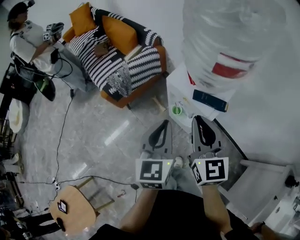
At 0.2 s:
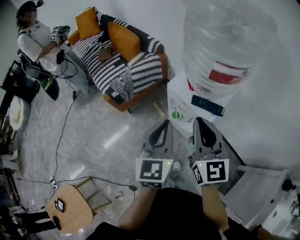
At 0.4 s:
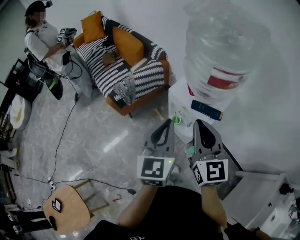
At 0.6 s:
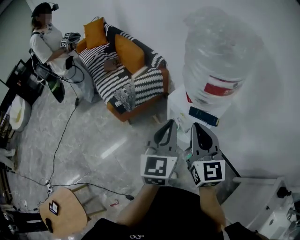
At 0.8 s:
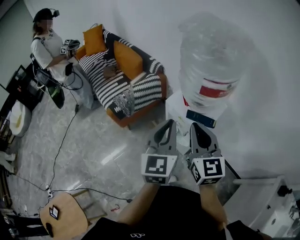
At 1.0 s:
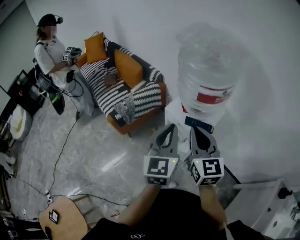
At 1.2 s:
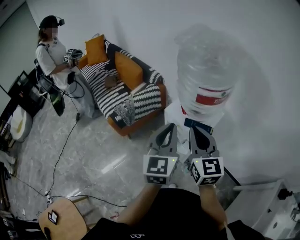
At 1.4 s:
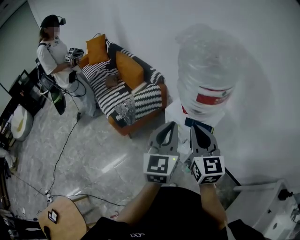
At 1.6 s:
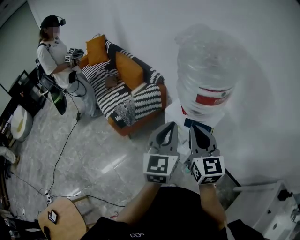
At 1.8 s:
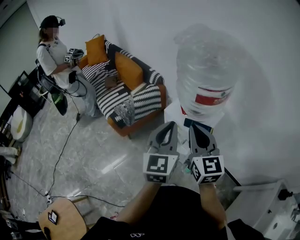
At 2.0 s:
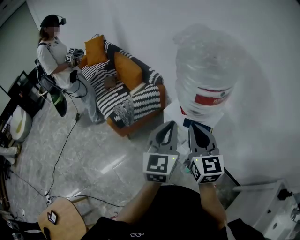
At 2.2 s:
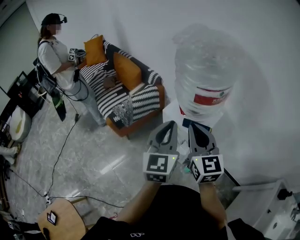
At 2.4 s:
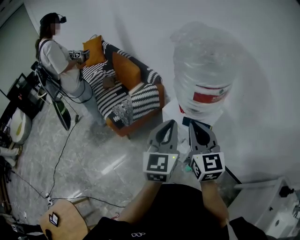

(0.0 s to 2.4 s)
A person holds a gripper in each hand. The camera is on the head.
0.0 s - 1.2 s: The two grippers go roughly 10 cm upward.
1.2 s - 2.4 s: There are only small adjustments of the grippers.

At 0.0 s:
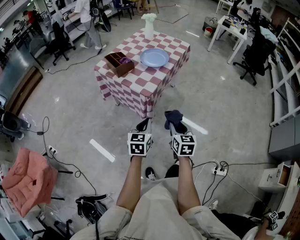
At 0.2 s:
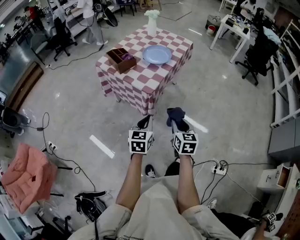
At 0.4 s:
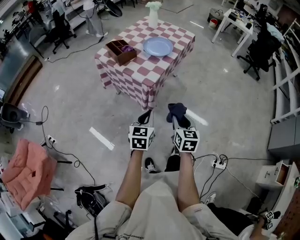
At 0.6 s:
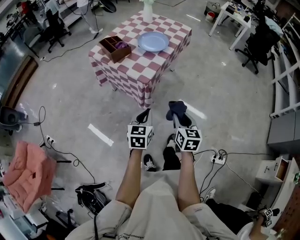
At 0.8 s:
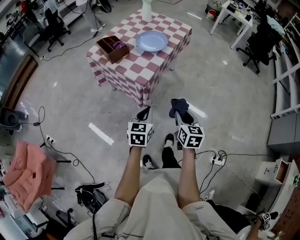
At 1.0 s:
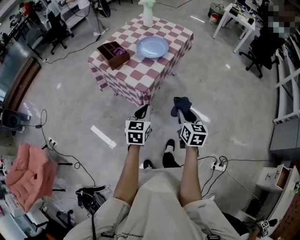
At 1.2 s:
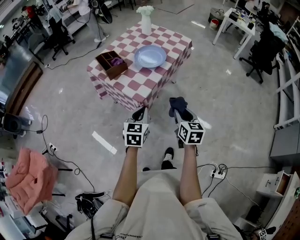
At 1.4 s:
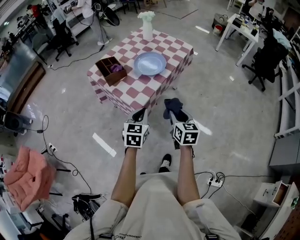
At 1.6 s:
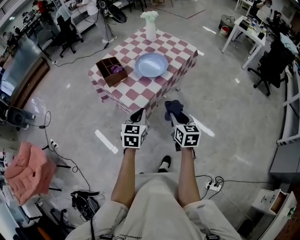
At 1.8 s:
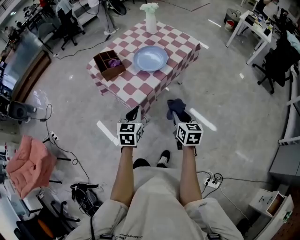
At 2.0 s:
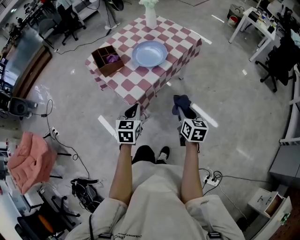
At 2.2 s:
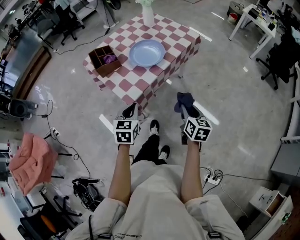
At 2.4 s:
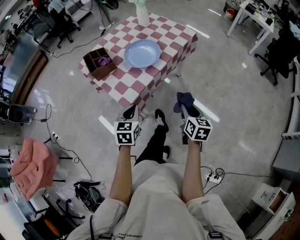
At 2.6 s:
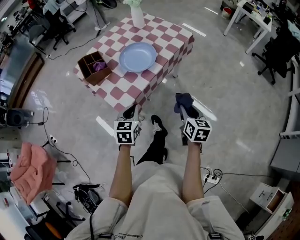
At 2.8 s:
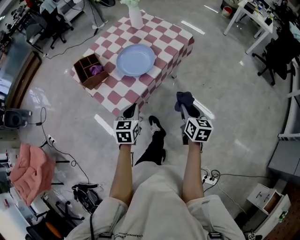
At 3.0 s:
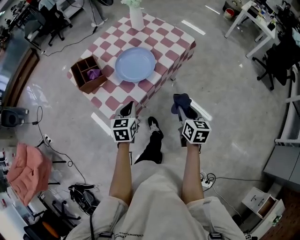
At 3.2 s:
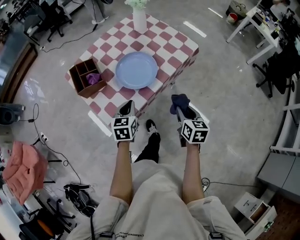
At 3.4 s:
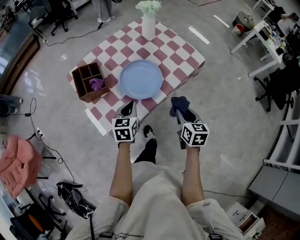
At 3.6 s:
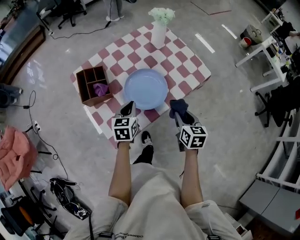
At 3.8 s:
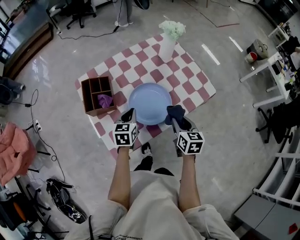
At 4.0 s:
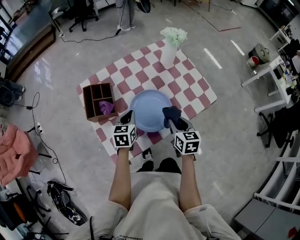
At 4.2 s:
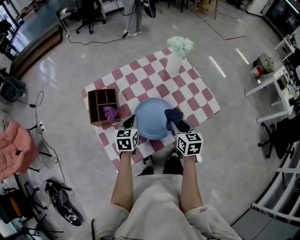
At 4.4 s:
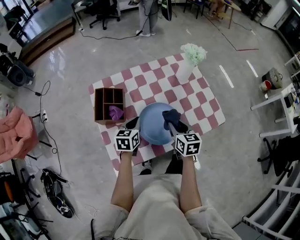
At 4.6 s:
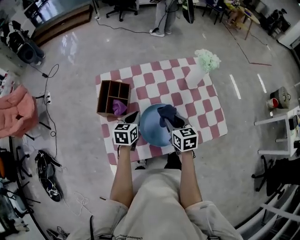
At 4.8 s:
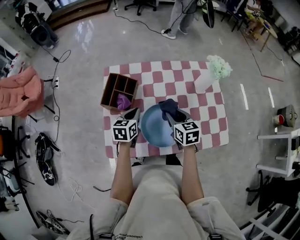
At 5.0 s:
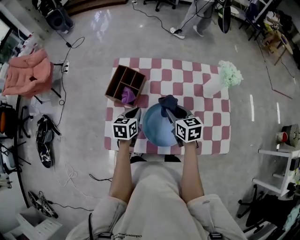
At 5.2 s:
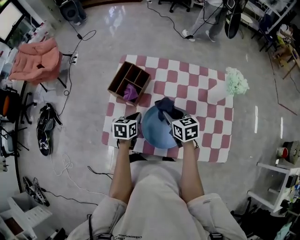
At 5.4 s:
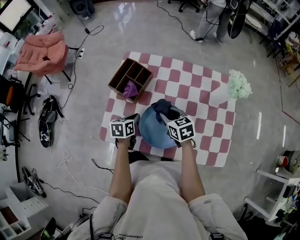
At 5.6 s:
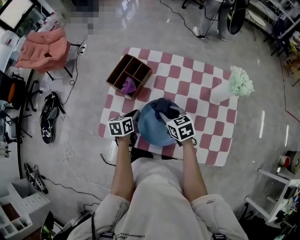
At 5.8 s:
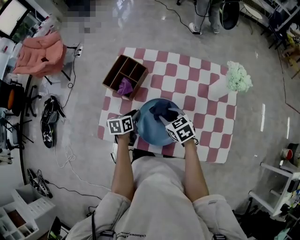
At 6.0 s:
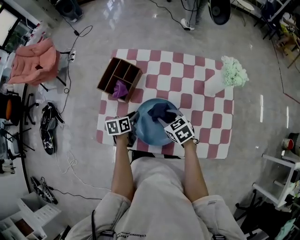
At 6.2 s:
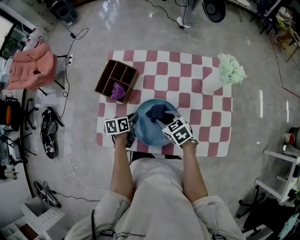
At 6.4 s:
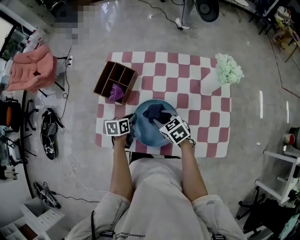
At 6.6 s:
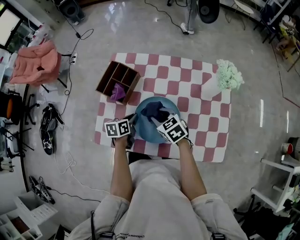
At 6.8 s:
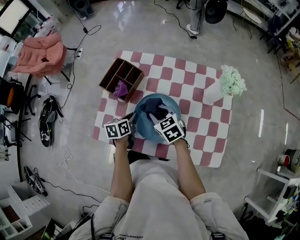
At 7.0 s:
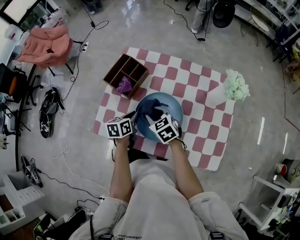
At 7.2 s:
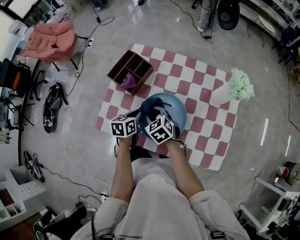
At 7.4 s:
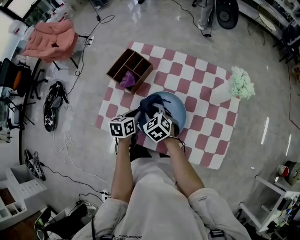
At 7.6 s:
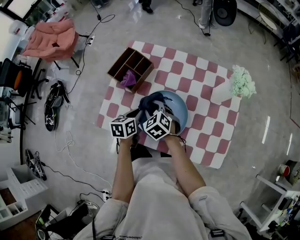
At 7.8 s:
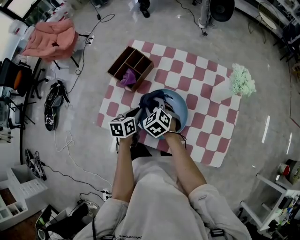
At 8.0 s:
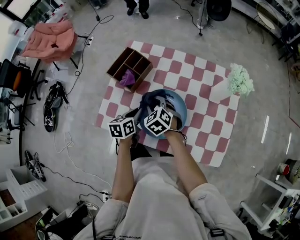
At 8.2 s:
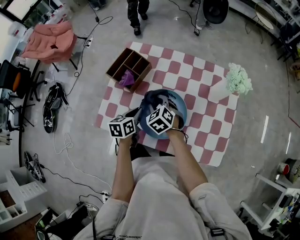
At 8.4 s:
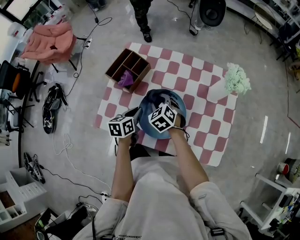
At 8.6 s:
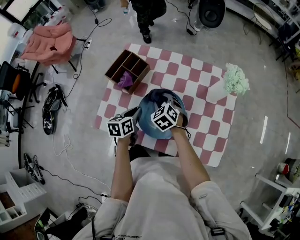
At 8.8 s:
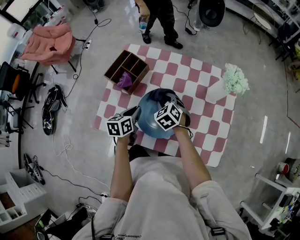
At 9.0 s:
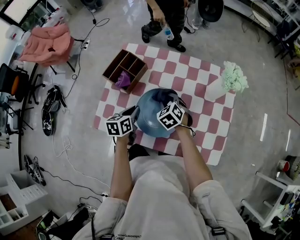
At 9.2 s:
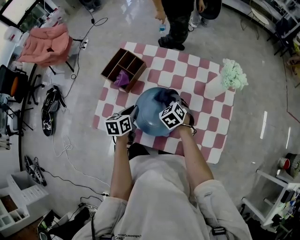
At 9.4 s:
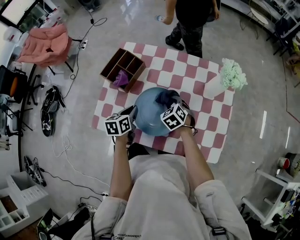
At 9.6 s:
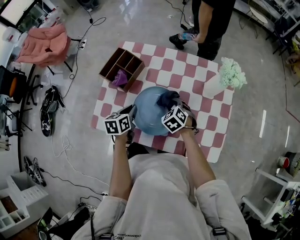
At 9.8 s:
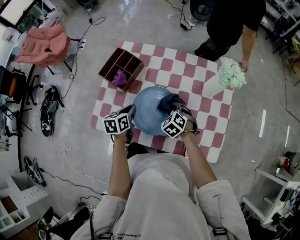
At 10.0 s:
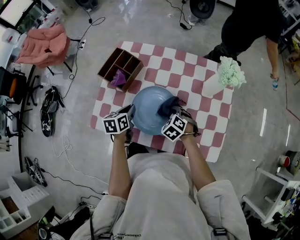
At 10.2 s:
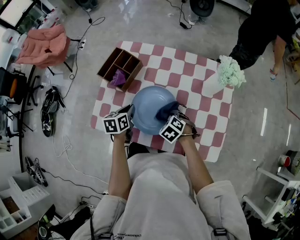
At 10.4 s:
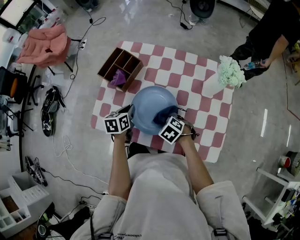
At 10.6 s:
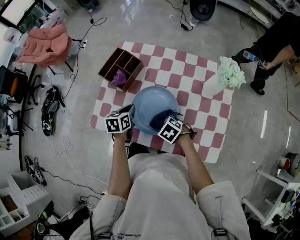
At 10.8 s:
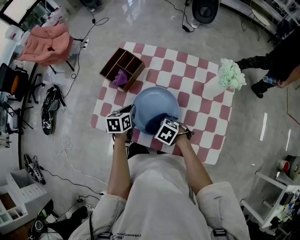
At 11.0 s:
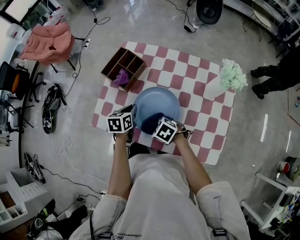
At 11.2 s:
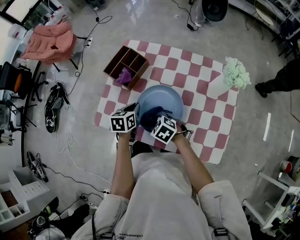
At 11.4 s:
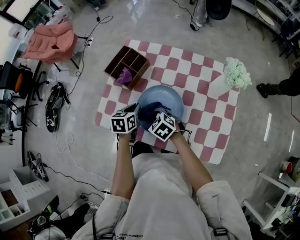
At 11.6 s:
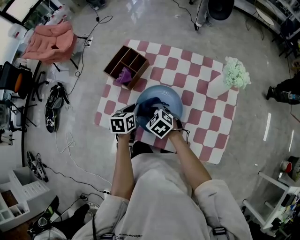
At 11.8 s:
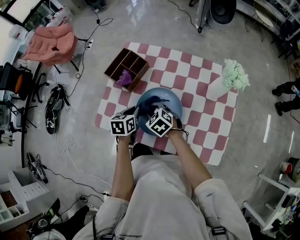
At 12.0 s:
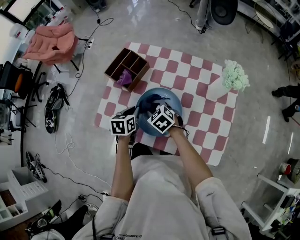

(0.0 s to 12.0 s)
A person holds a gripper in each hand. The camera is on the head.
0.0 s - 1.6 s: Both grippers move forward, about 20 cm.
1.6 s - 3.0 s: The left gripper moves forward and downward, some 20 cm. The right gripper heads forward, to the right and downward, covering approximately 20 cm.
3.0 s - 4.4 s: Both grippers travel together forward, about 30 cm. The left gripper rotates approximately 30 degrees. The right gripper rotates some 40 degrees.
4.4 s - 6.0 s: The left gripper is displaced downward by about 10 cm, and turns by some 40 degrees. The right gripper moves about 10 cm, and turns by roughly 60 degrees.
6.0 s - 7.6 s: The left gripper heads upward, covering approximately 5 cm, while the right gripper heads to the left, covering approximately 5 cm, and changes its angle by roughly 20 degrees.
7.6 s - 9.0 s: The right gripper travels to the right by approximately 10 cm.
9.0 s - 10.4 s: The right gripper heads backward, covering some 10 cm, and swivels approximately 20 degrees.
10.4 s - 12.0 s: The right gripper heads forward and to the left, covering approximately 10 cm, and rotates some 20 degrees.

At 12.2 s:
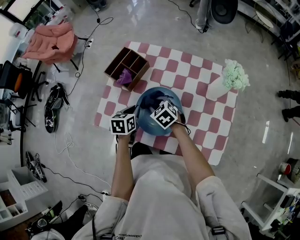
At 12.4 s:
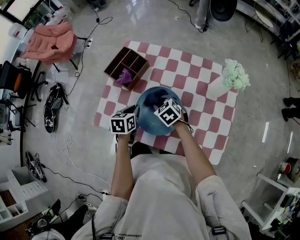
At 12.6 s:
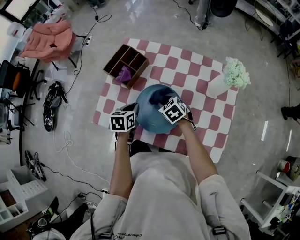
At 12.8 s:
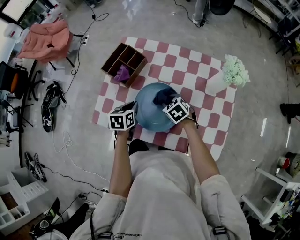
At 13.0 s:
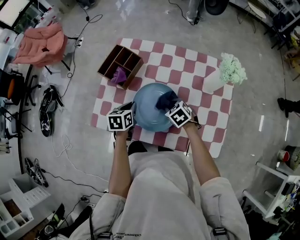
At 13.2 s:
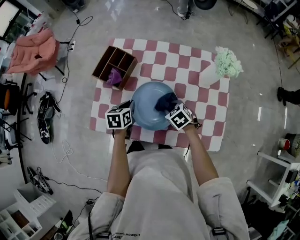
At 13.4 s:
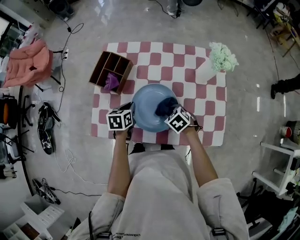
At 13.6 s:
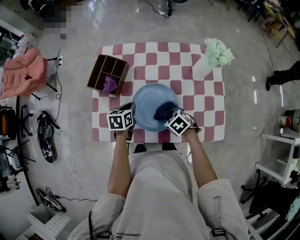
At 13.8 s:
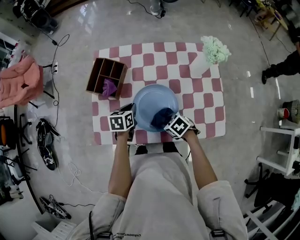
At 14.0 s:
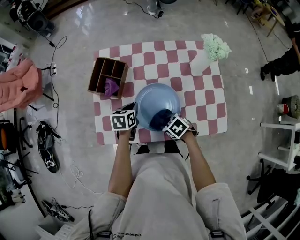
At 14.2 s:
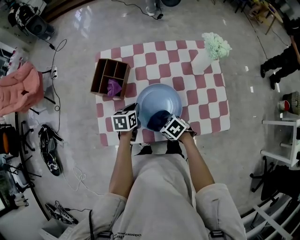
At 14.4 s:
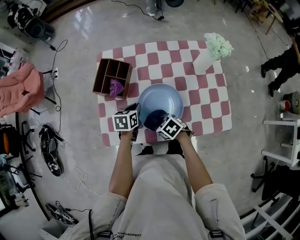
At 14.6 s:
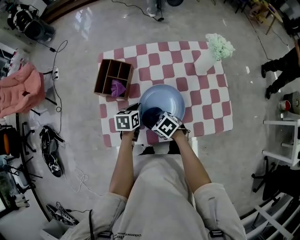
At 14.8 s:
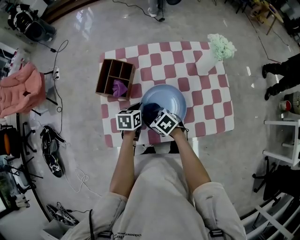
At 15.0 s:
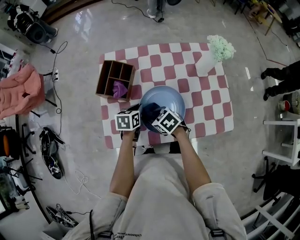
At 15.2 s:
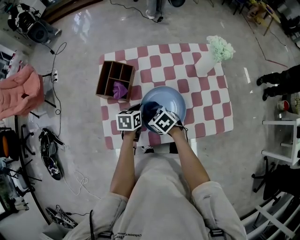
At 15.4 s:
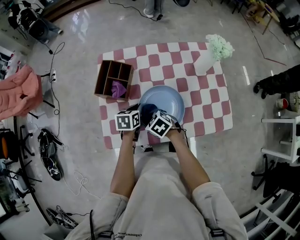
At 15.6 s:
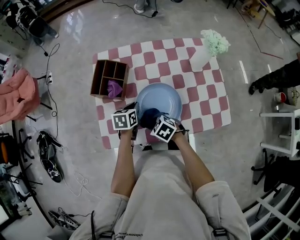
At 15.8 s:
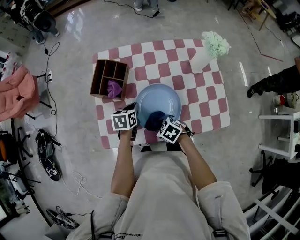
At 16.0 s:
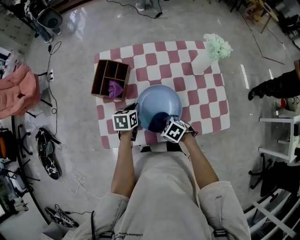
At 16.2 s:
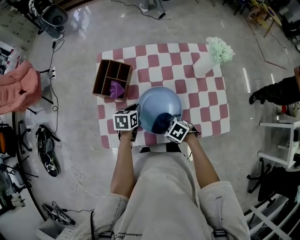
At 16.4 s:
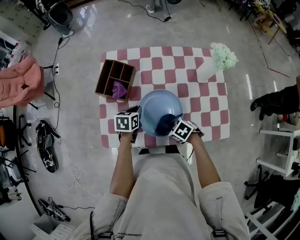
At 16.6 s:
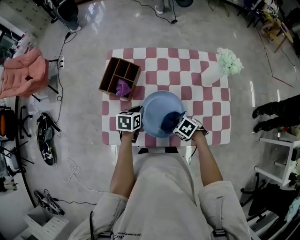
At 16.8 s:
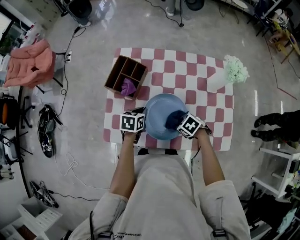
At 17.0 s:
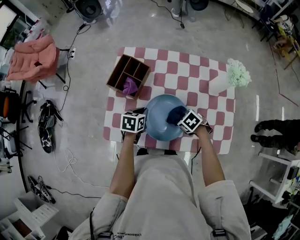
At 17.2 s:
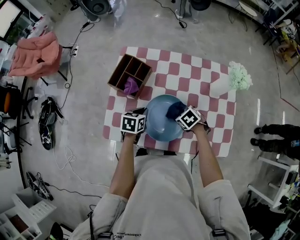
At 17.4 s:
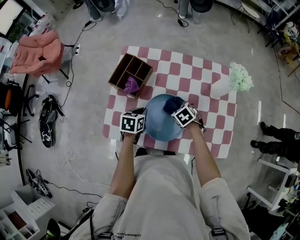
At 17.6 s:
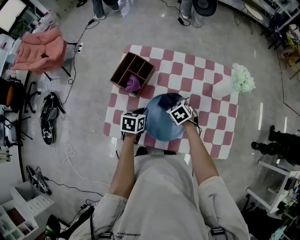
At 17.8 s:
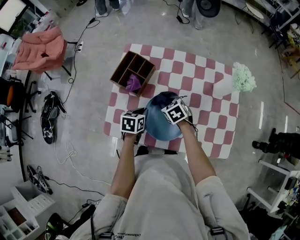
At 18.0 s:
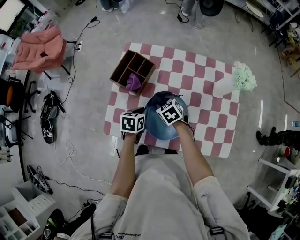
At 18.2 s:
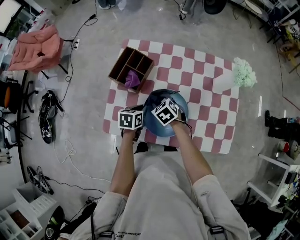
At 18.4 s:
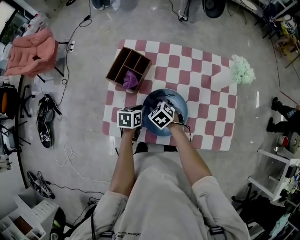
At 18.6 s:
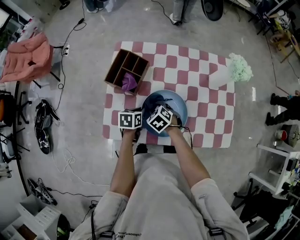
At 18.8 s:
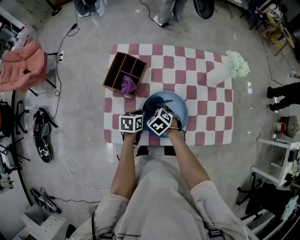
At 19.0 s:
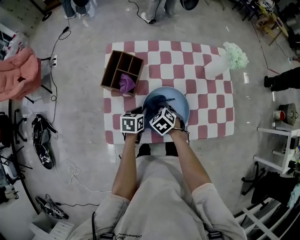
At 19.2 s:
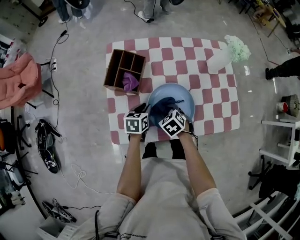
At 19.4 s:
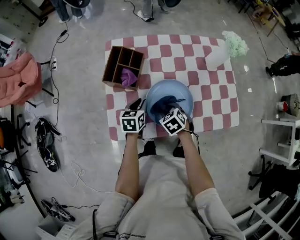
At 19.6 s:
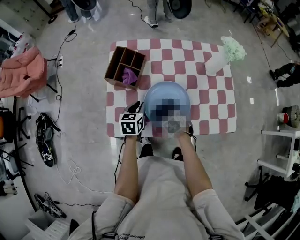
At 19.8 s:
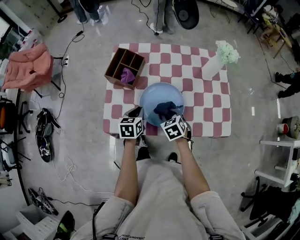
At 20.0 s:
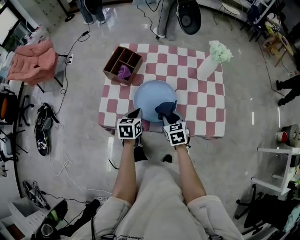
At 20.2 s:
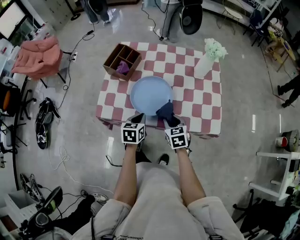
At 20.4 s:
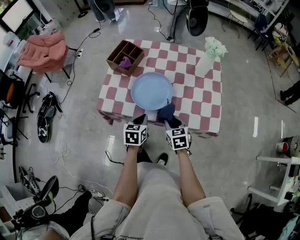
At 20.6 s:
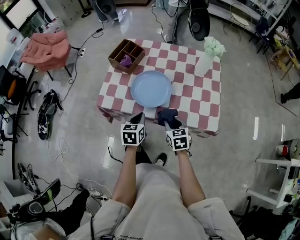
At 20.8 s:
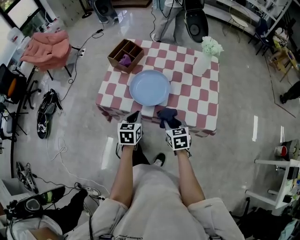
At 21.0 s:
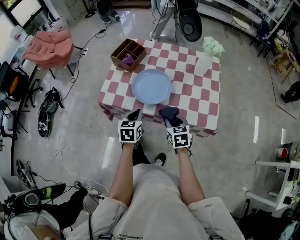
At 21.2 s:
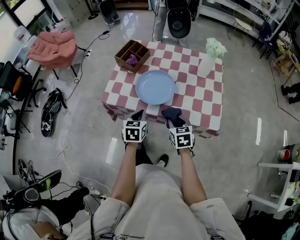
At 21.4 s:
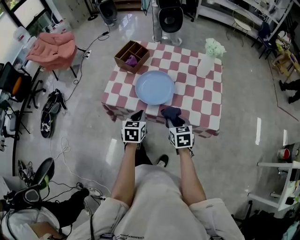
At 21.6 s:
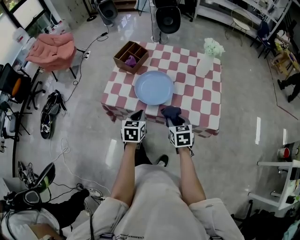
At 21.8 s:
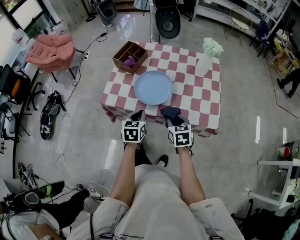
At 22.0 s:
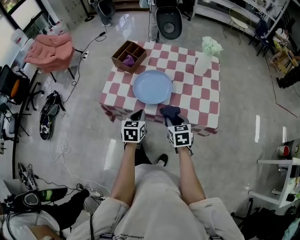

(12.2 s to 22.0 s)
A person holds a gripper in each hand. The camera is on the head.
12.2 s - 13.6 s: The right gripper shifts about 10 cm backward and to the right, and rotates some 20 degrees.
13.6 s - 15.0 s: The right gripper is displaced to the left by about 15 cm.
15.0 s - 16.4 s: The right gripper goes about 10 cm backward and to the right.
16.4 s - 17.8 s: The right gripper is displaced forward by about 15 cm, and turns by approximately 20 degrees.
17.8 s - 19.2 s: The right gripper travels backward by roughly 10 cm.
19.2 s - 20.6 s: The two grippers go roughly 25 cm backward and to the right. The left gripper rotates roughly 30 degrees; the right gripper rotates roughly 30 degrees.
20.6 s - 22.0 s: The grippers stay close to where they were, moving slightly.
